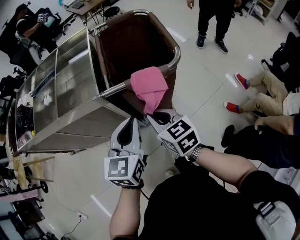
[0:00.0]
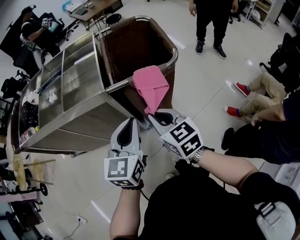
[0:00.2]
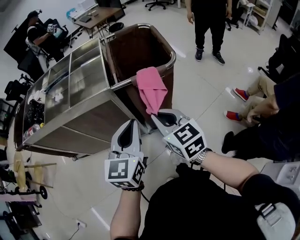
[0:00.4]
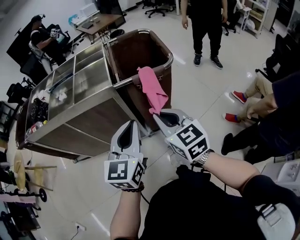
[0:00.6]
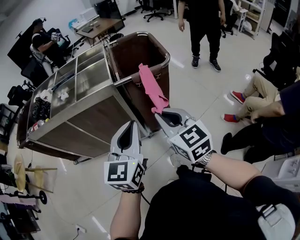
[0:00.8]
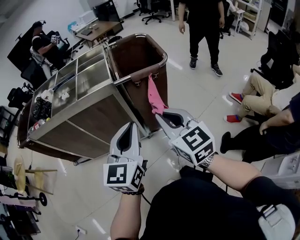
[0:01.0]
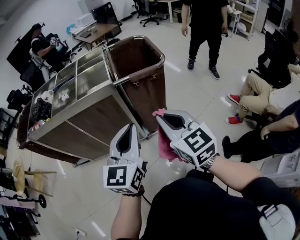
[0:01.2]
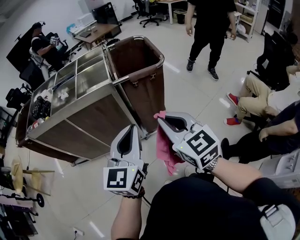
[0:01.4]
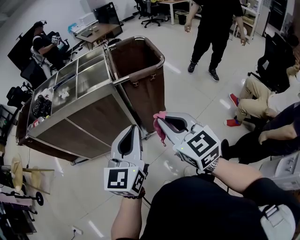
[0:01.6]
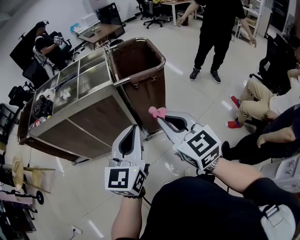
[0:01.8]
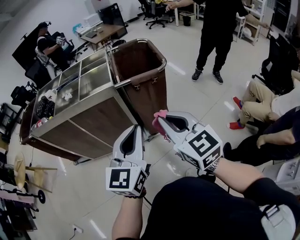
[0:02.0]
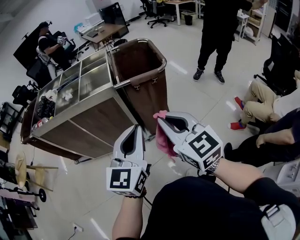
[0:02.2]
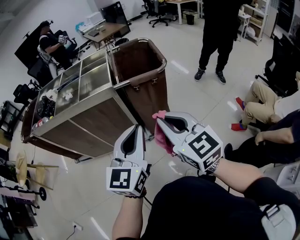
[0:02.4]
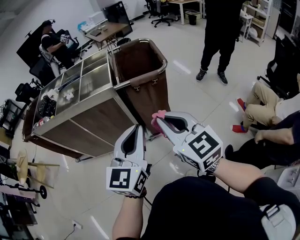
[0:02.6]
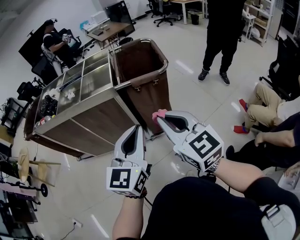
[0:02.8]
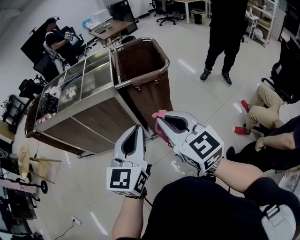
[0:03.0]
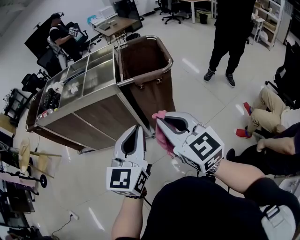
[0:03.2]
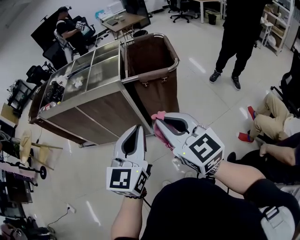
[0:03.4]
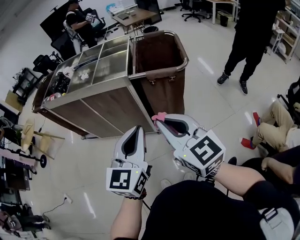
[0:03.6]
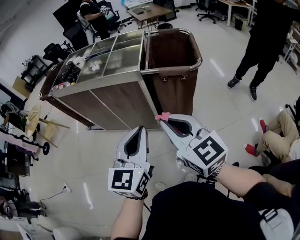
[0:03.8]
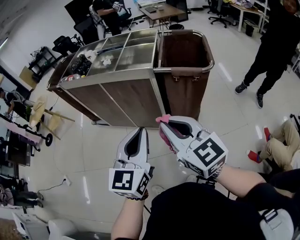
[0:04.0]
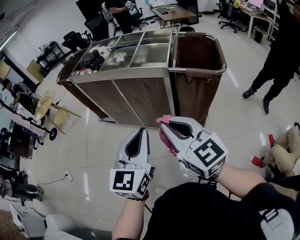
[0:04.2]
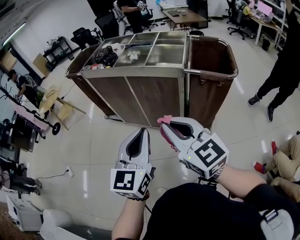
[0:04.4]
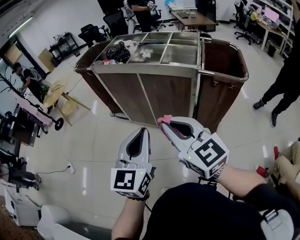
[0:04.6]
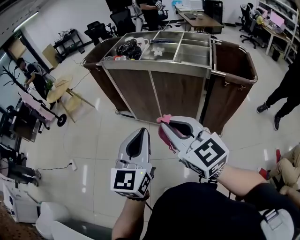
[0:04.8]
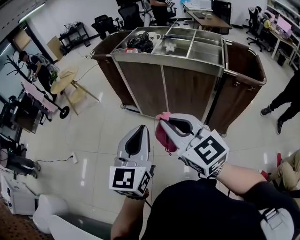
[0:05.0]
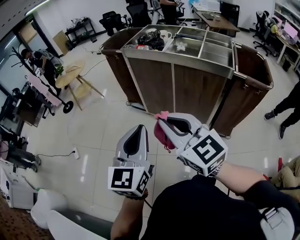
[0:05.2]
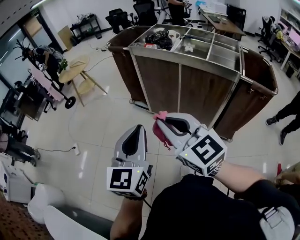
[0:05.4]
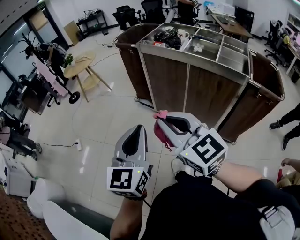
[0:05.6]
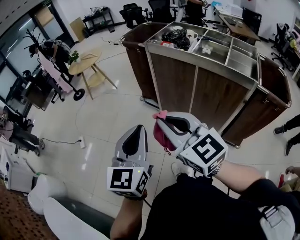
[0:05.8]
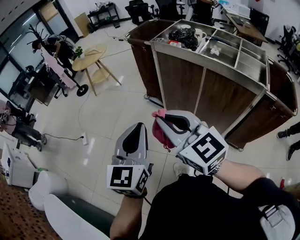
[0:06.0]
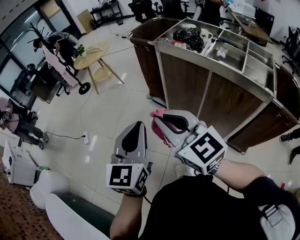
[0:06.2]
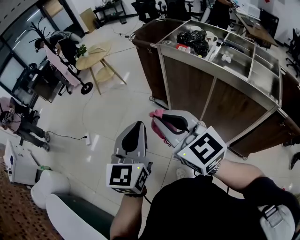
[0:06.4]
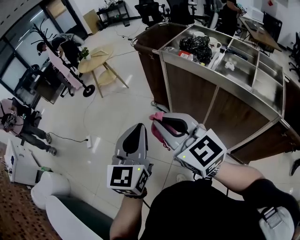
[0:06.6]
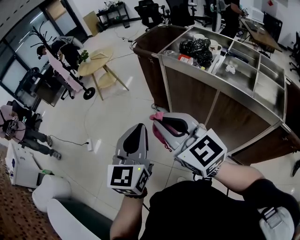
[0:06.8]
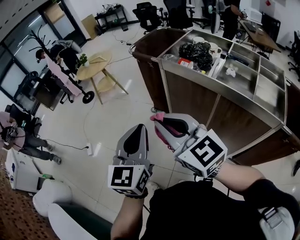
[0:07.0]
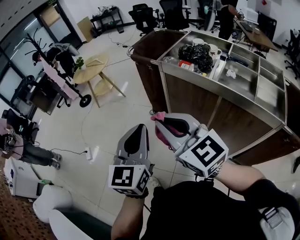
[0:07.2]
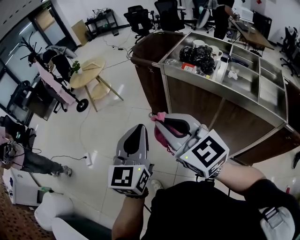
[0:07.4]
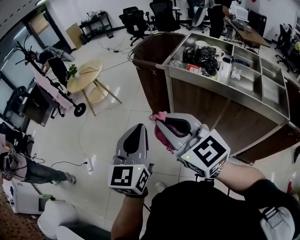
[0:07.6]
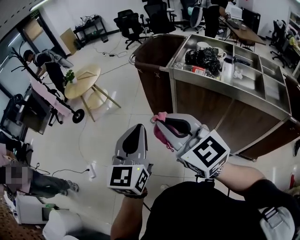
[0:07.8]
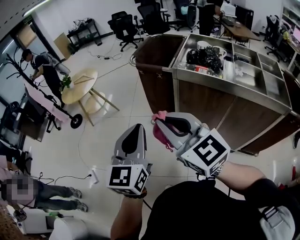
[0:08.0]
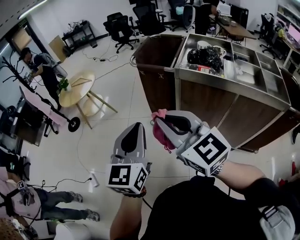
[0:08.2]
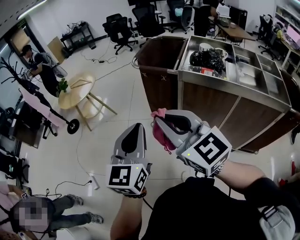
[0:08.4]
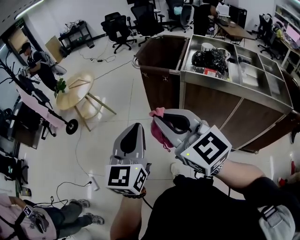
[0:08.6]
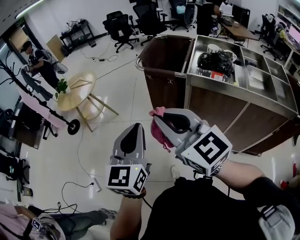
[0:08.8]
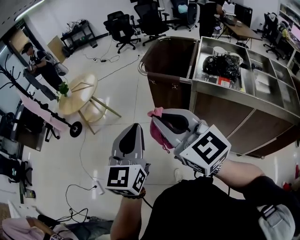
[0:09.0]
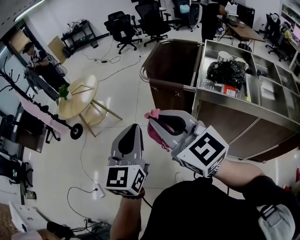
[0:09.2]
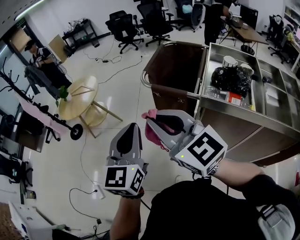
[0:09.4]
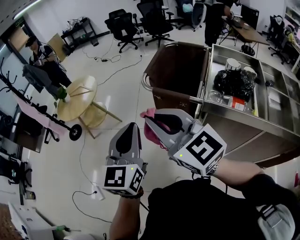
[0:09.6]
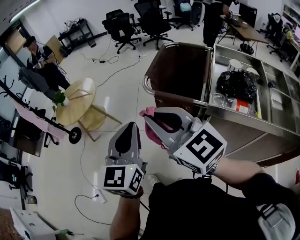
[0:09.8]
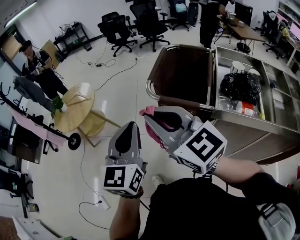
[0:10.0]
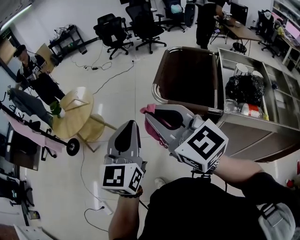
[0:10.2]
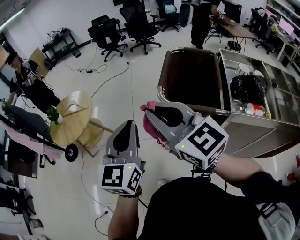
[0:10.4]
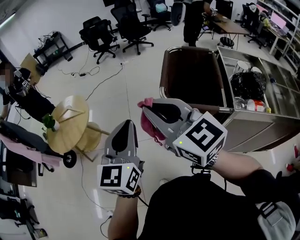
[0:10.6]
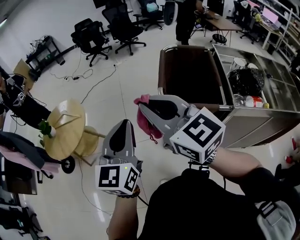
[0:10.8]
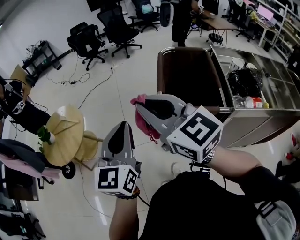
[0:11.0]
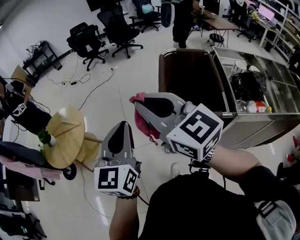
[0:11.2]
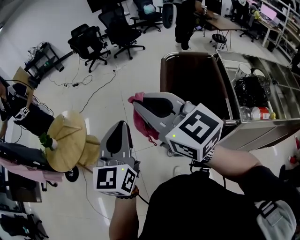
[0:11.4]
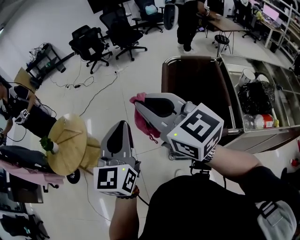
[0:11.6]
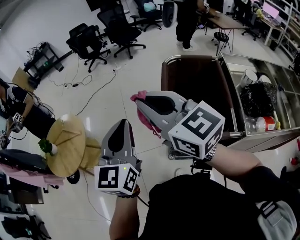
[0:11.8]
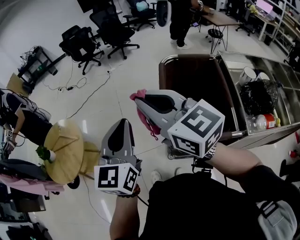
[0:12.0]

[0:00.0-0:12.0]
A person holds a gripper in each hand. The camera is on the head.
0:00.0 to 0:01.6: Both grippers move backward, about 35 cm. The right gripper changes its angle by approximately 30 degrees.
0:01.6 to 0:03.0: Both grippers move to the right, roughly 5 cm.
0:03.0 to 0:04.4: Both grippers travel together to the left, some 20 cm. The right gripper swivels about 20 degrees. The left gripper rotates roughly 20 degrees.
0:04.4 to 0:06.0: The grippers both shift to the left and forward by roughly 35 cm. The right gripper swivels roughly 20 degrees, while the left gripper rotates roughly 20 degrees.
0:06.0 to 0:07.6: The two grippers go roughly 25 cm forward.
0:07.6 to 0:09.0: Both grippers move forward and to the left, about 20 cm.
0:09.0 to 0:10.4: Both grippers move forward, roughly 25 cm.
0:10.4 to 0:12.0: Both grippers travel together forward, approximately 20 cm.

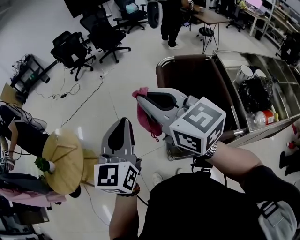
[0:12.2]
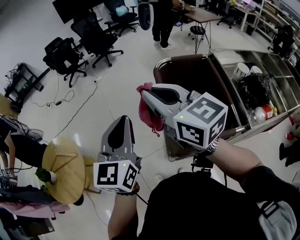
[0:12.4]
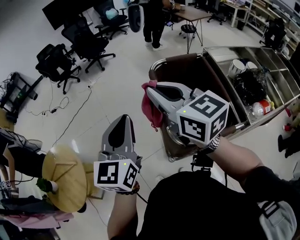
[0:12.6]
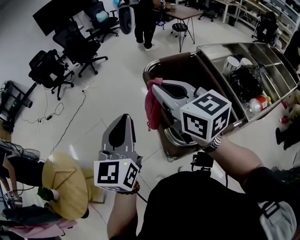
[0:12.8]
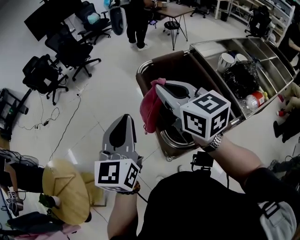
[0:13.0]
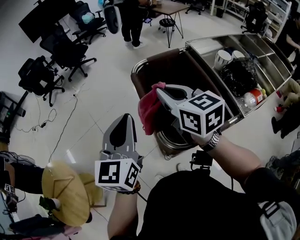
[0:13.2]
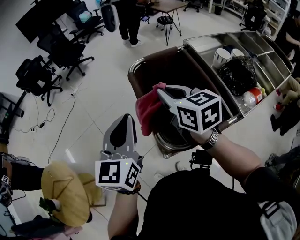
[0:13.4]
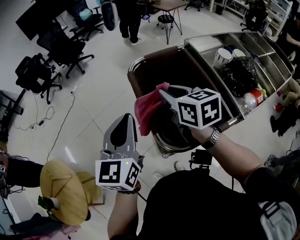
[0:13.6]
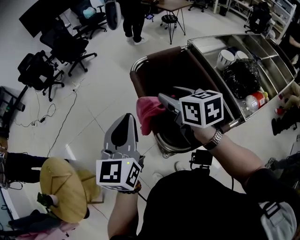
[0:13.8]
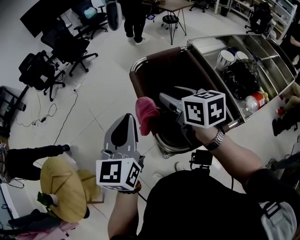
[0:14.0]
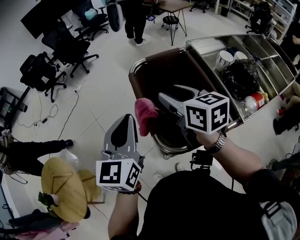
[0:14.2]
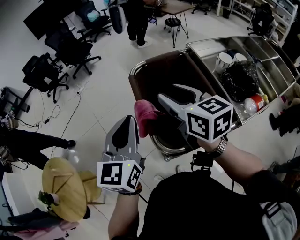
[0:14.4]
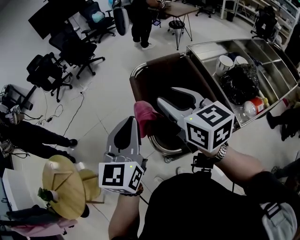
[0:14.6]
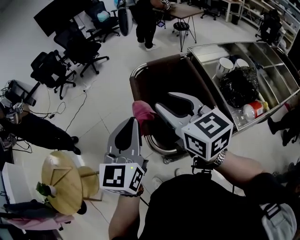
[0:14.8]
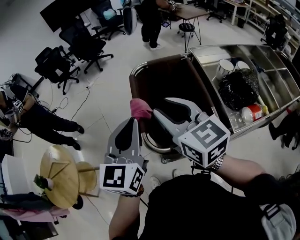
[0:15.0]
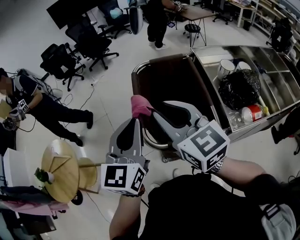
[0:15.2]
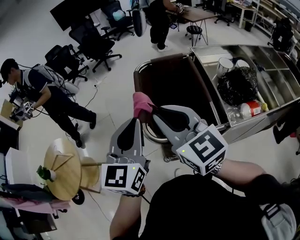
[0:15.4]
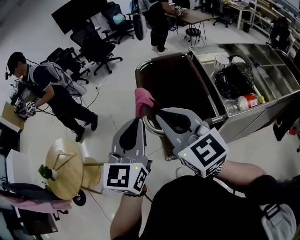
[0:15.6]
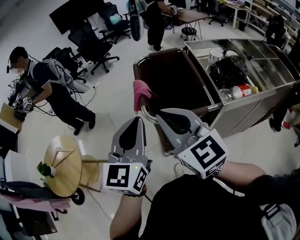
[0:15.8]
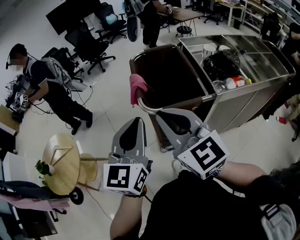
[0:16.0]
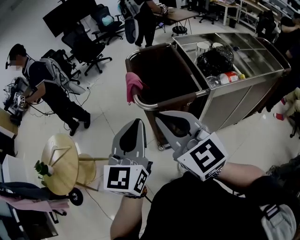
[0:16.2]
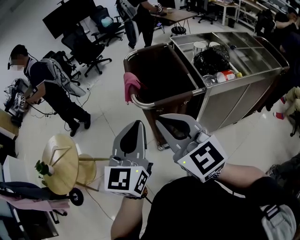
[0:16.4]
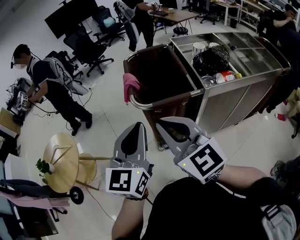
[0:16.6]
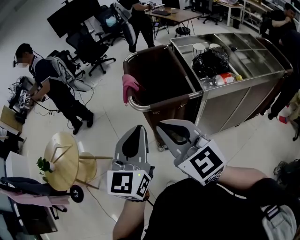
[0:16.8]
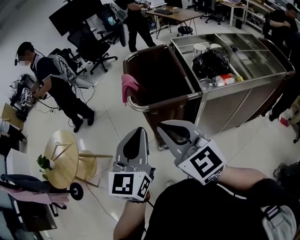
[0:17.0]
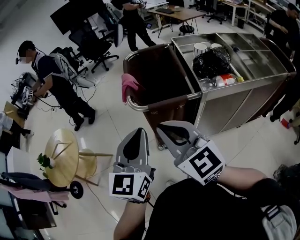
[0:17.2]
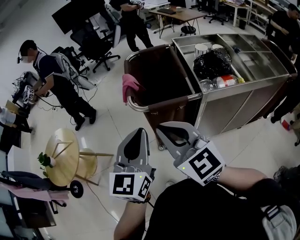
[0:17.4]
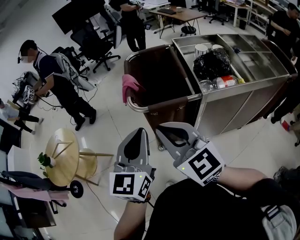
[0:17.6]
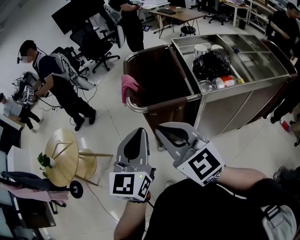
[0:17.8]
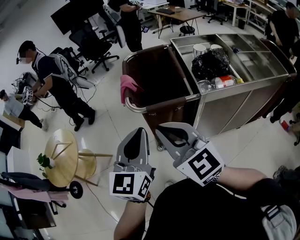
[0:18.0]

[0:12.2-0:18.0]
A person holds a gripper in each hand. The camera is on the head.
0:12.2 to 0:13.6: The right gripper shifts about 20 cm forward, downward and to the right, and swivels roughly 40 degrees; the left gripper shifts about 10 cm forward.
0:13.6 to 0:15.0: The right gripper heads backward and upward, covering roughly 15 cm, and turns by roughly 30 degrees; the left gripper is displaced to the right and backward by some 10 cm.
0:15.0 to 0:16.6: The two grippers go about 25 cm backward. The right gripper closes up.
0:16.6 to 0:18.0: The left gripper moves roughly 5 cm.

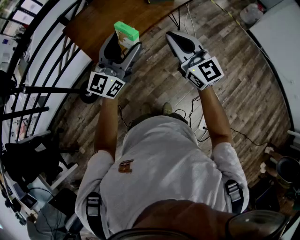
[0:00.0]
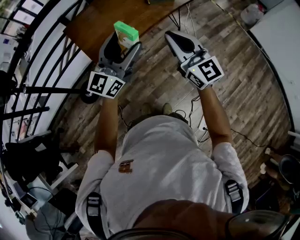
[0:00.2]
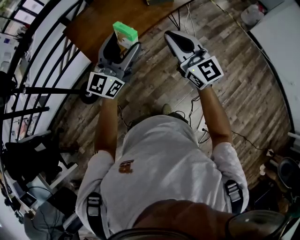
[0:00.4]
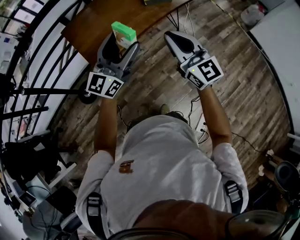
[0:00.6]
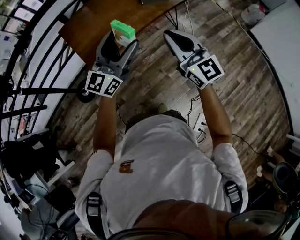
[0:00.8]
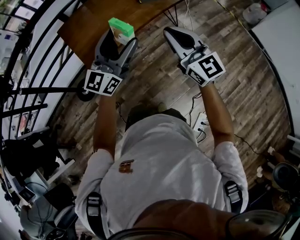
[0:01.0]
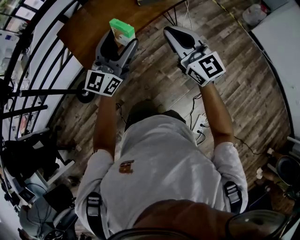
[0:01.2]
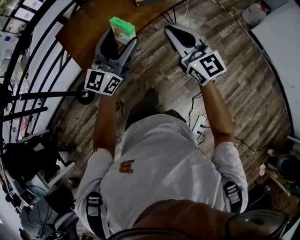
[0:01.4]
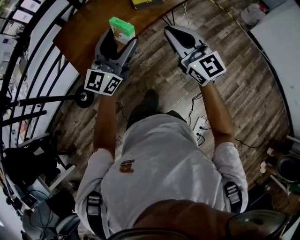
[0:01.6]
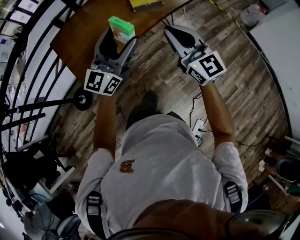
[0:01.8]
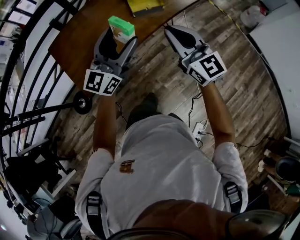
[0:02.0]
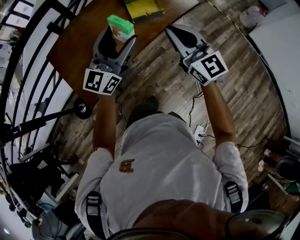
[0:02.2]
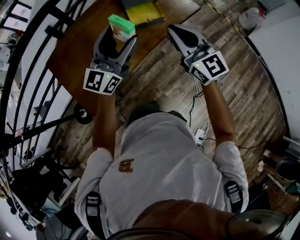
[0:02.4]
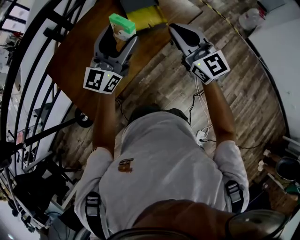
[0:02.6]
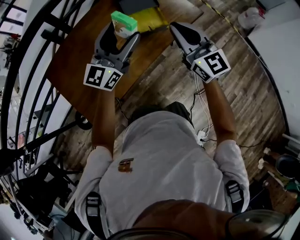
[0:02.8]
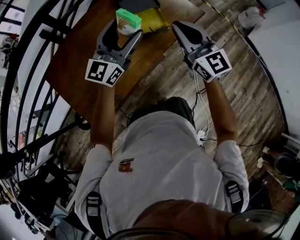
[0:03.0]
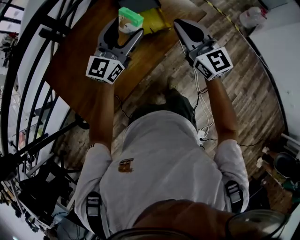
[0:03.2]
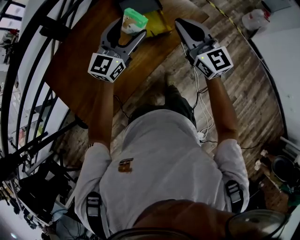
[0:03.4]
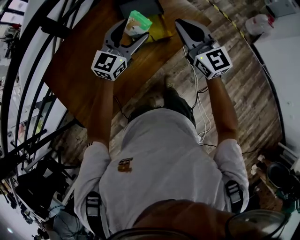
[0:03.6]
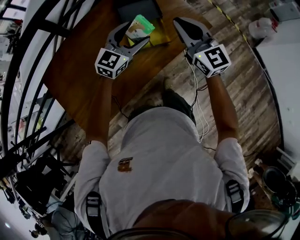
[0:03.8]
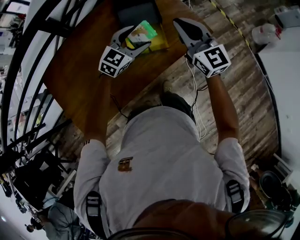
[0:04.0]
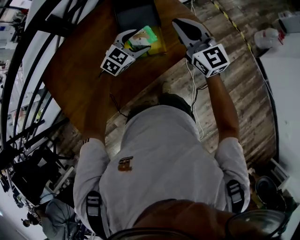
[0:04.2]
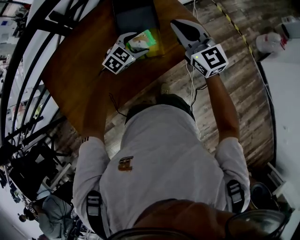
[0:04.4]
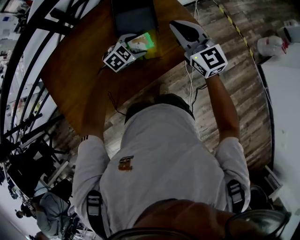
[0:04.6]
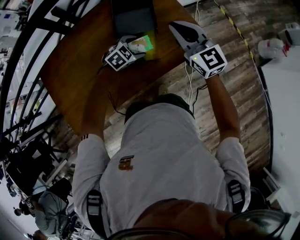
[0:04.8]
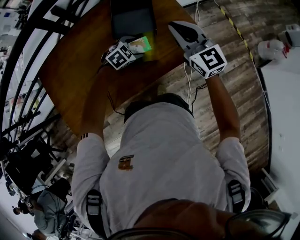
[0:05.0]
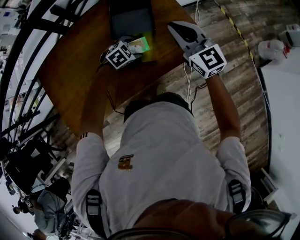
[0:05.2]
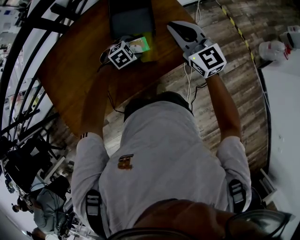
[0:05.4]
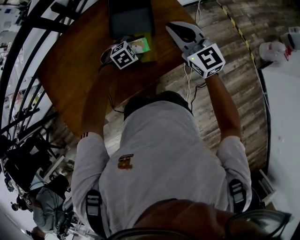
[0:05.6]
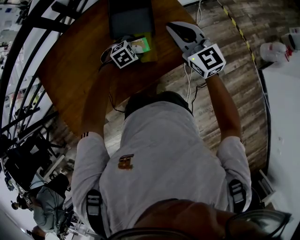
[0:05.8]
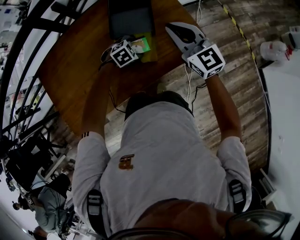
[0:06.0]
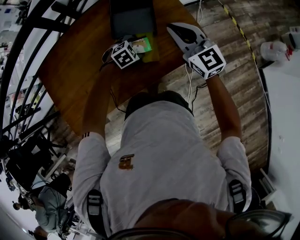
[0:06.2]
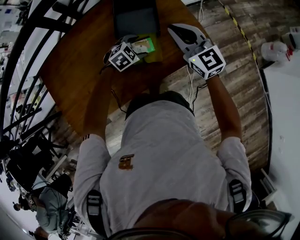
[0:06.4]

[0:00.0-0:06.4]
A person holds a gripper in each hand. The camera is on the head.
0:00.0 to 0:01.6: Both grippers travel together to the right and forward, roughly 15 cm.
0:01.6 to 0:03.2: The two grippers go roughly 40 cm forward.
0:03.2 to 0:04.8: The right gripper is displaced forward by approximately 25 cm; the left gripper heads downward and forward, covering some 35 cm, and tips its fingers downward by approximately 60 degrees.
0:04.8 to 0:06.4: The grippers make only small movements.
